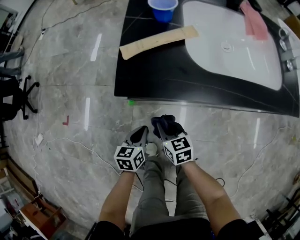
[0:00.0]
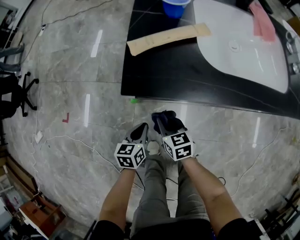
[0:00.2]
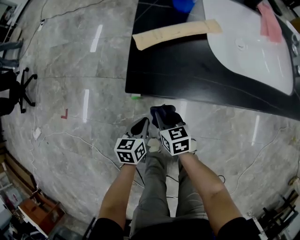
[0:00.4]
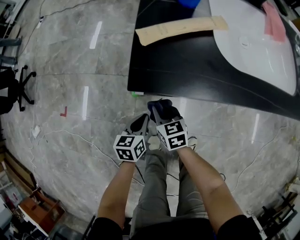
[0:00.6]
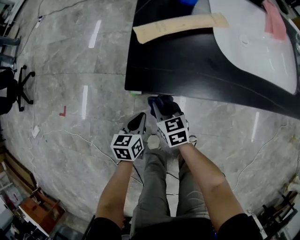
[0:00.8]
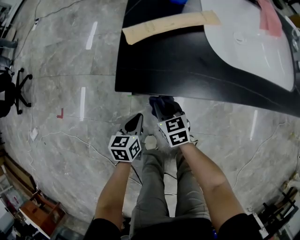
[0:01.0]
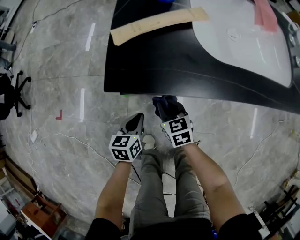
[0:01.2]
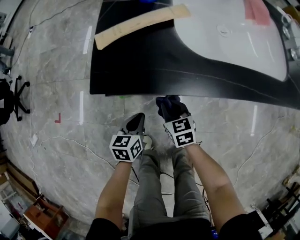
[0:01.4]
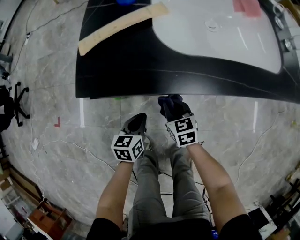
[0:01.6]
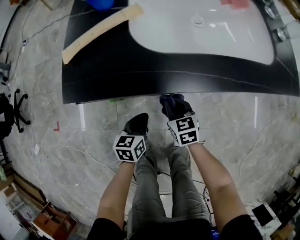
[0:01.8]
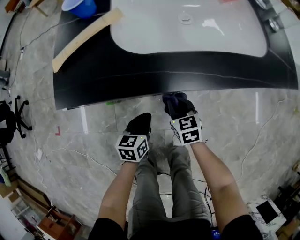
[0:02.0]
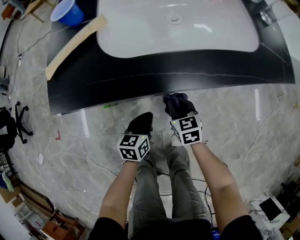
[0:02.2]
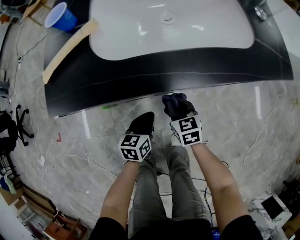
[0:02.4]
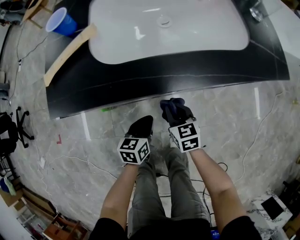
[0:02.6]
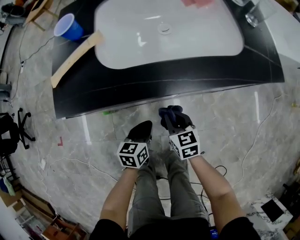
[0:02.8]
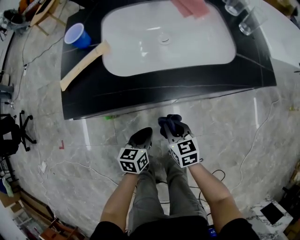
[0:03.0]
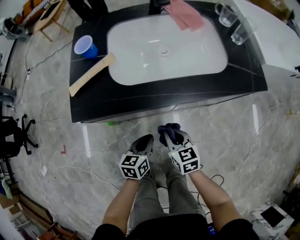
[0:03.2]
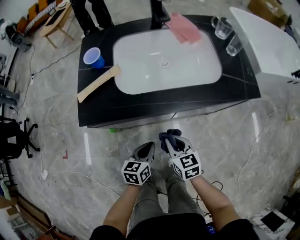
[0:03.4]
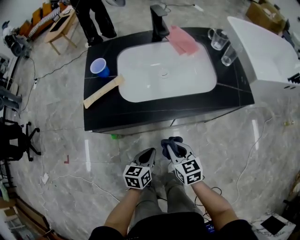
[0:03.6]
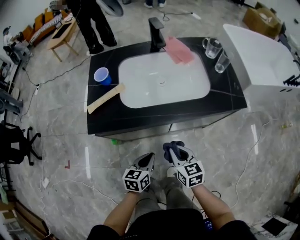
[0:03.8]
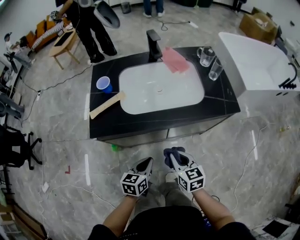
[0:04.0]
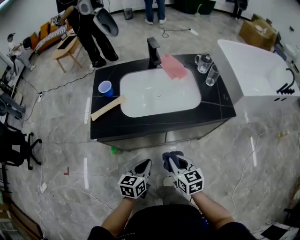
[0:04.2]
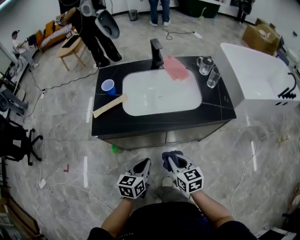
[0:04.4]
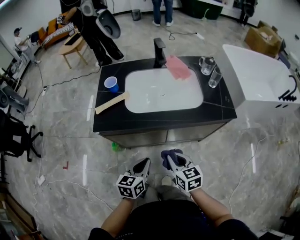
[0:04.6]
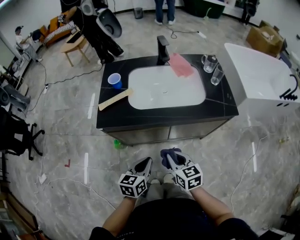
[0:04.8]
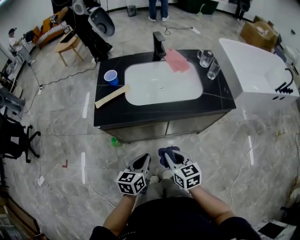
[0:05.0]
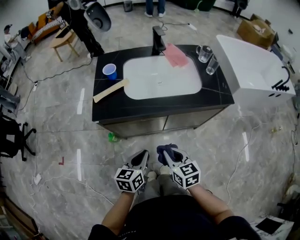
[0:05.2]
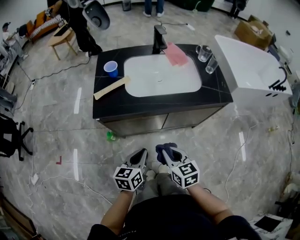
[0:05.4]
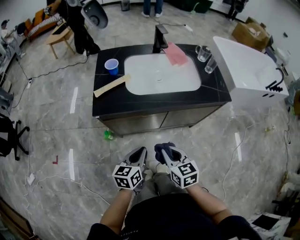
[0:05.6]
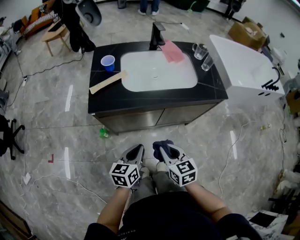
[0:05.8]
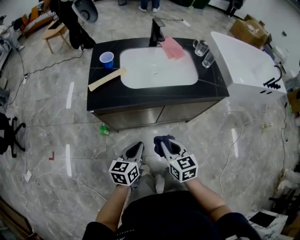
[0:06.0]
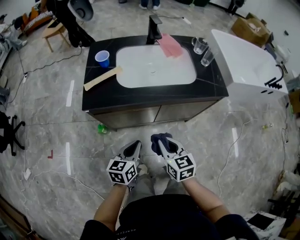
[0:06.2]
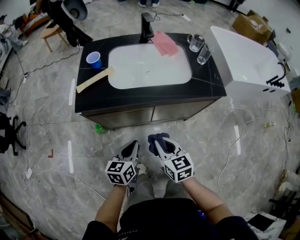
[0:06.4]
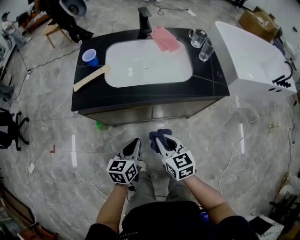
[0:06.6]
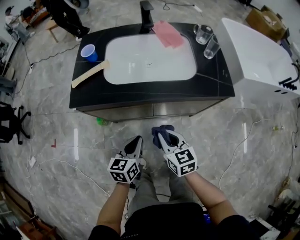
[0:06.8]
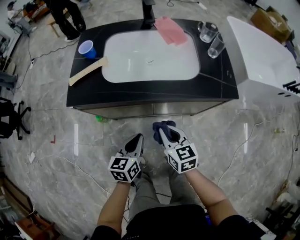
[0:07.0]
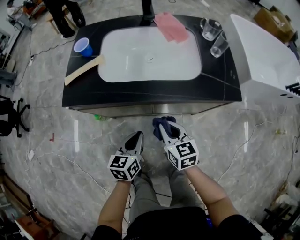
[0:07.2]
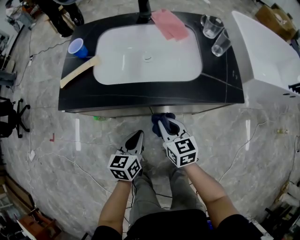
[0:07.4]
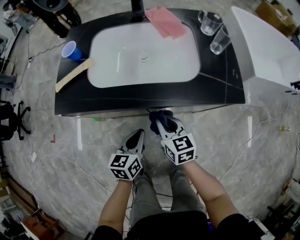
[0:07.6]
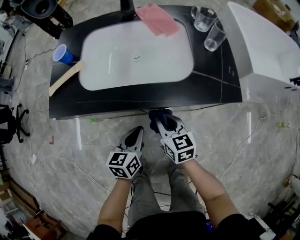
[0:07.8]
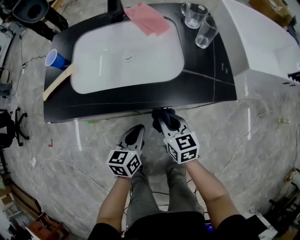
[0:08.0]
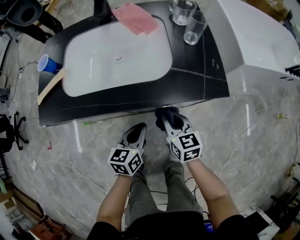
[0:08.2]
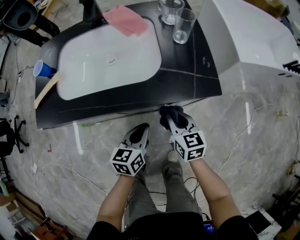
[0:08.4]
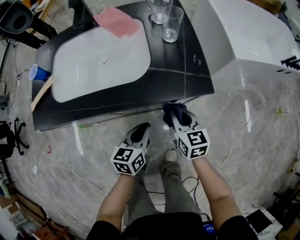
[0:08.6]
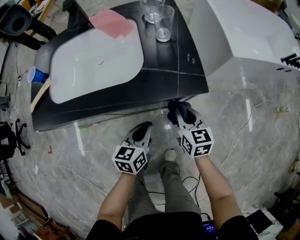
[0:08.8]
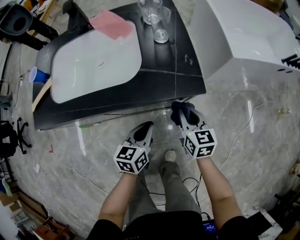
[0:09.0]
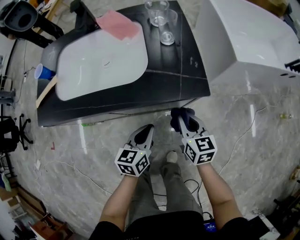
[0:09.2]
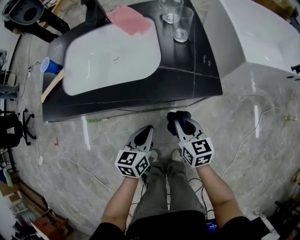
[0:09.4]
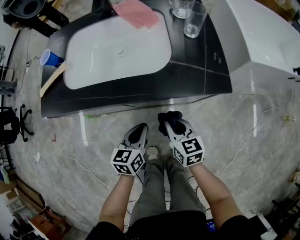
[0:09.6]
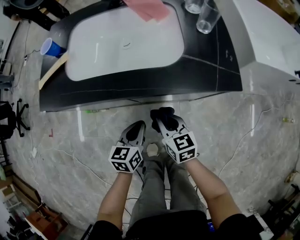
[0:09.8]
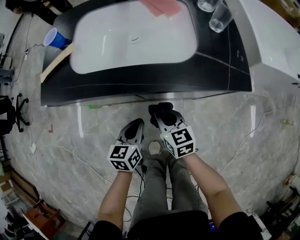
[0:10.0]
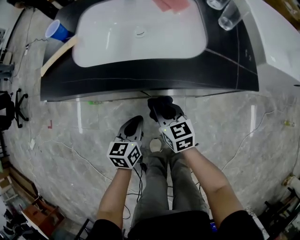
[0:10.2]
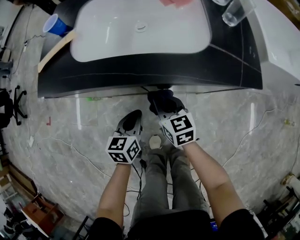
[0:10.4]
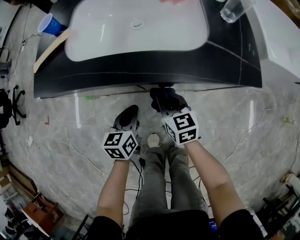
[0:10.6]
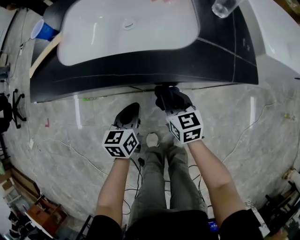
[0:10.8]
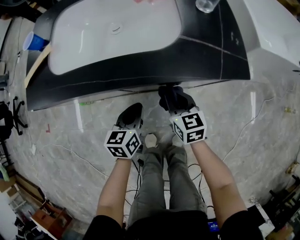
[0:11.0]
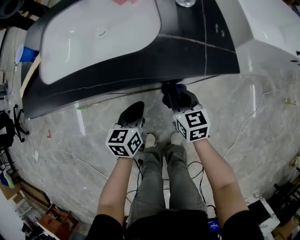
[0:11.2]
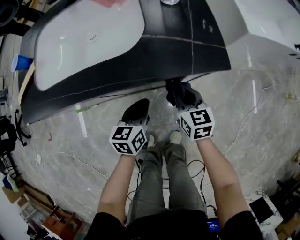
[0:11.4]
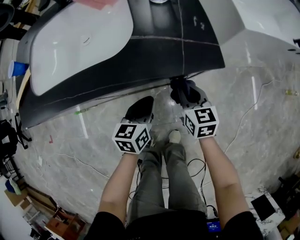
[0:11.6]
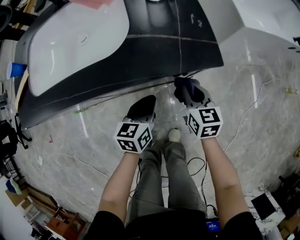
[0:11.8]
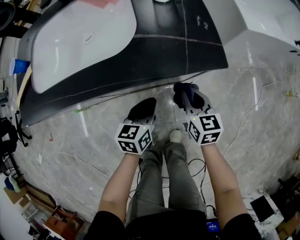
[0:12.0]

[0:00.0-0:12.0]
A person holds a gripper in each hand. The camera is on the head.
0.0 to 1.6 s: The right gripper moves to the right and downward, some 10 cm, while the left gripper goes about 5 cm to the right.
1.6 to 3.0 s: The right gripper is displaced to the right and upward by about 15 cm, while the left gripper moves to the right, some 15 cm.
3.0 to 4.4 s: Both grippers travel together upward, approximately 20 cm.
4.4 to 6.0 s: The left gripper ends up some 5 cm from where it was; the right gripper travels to the left and backward by about 10 cm.
6.0 to 7.6 s: The right gripper goes some 20 cm forward, to the right and downward, while the left gripper goes some 20 cm to the right, forward and downward.
7.6 to 9.0 s: The two grippers go about 25 cm to the right.
9.0 to 10.4 s: The two grippers go some 25 cm to the left. The right gripper swivels roughly 20 degrees.
10.4 to 12.0 s: Both grippers move to the right, roughly 25 cm. The right gripper rotates some 20 degrees.

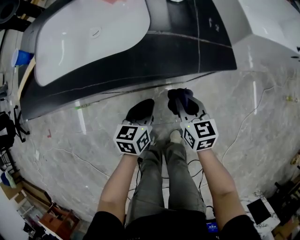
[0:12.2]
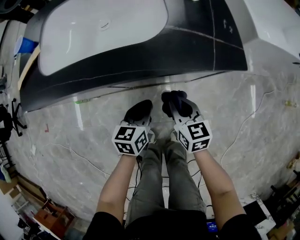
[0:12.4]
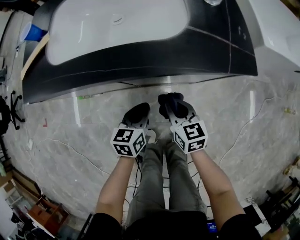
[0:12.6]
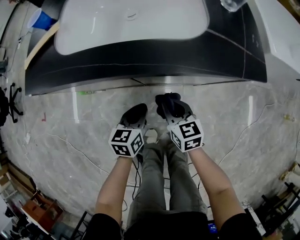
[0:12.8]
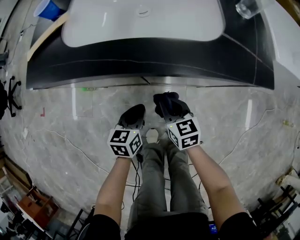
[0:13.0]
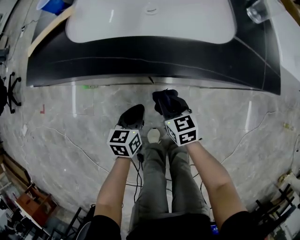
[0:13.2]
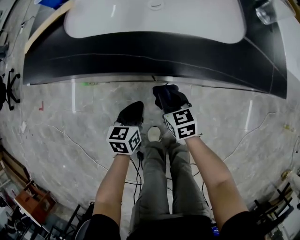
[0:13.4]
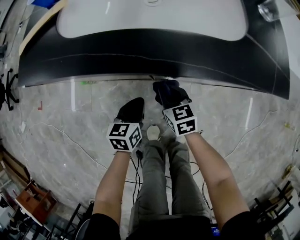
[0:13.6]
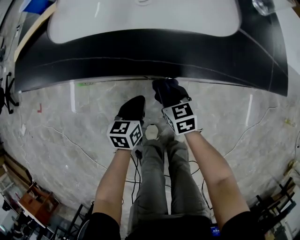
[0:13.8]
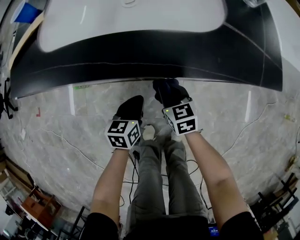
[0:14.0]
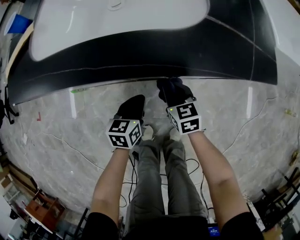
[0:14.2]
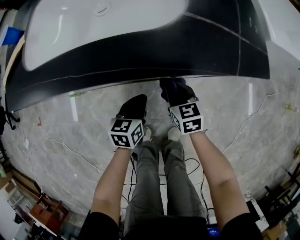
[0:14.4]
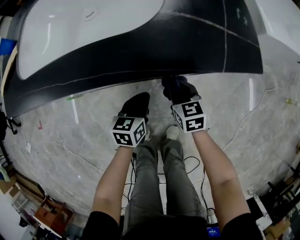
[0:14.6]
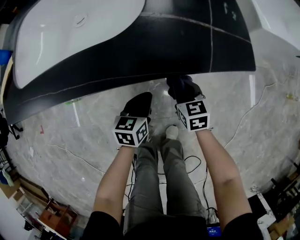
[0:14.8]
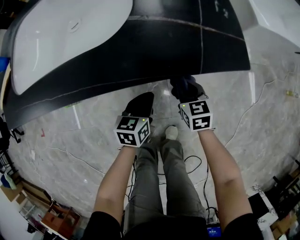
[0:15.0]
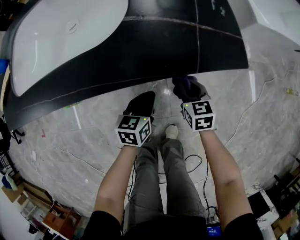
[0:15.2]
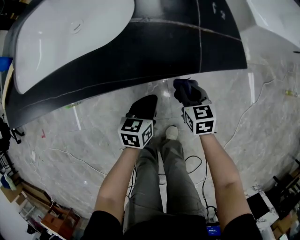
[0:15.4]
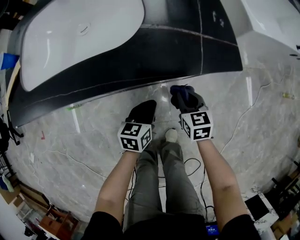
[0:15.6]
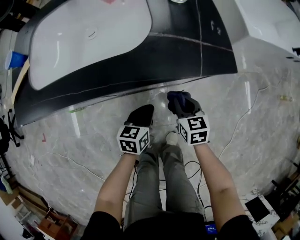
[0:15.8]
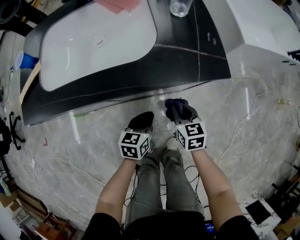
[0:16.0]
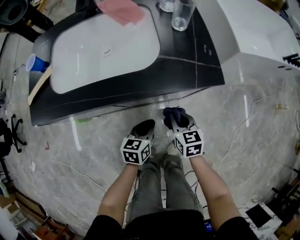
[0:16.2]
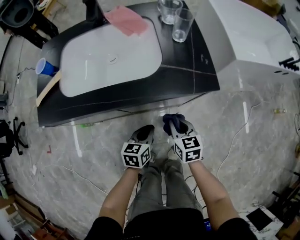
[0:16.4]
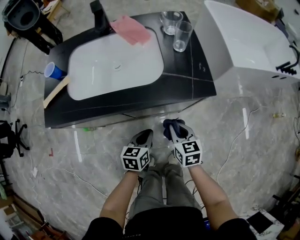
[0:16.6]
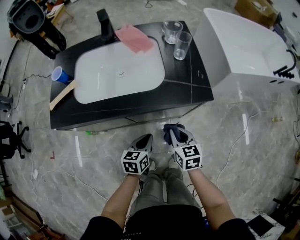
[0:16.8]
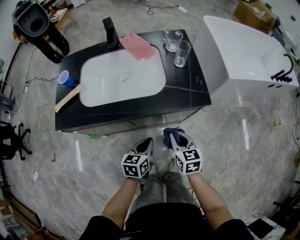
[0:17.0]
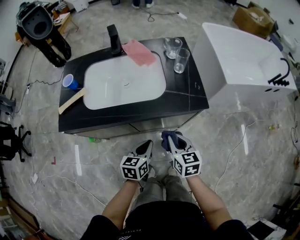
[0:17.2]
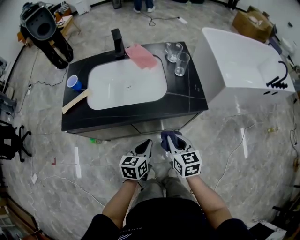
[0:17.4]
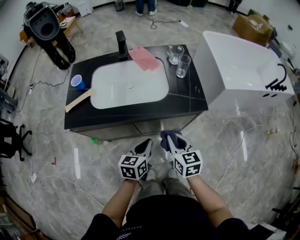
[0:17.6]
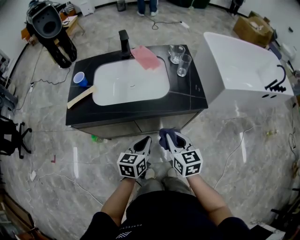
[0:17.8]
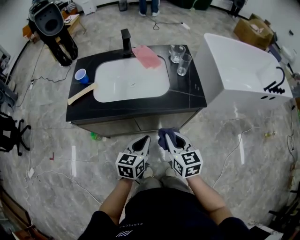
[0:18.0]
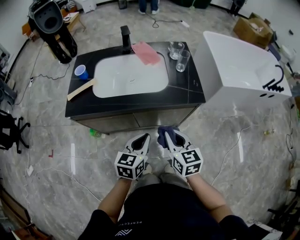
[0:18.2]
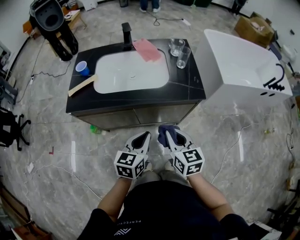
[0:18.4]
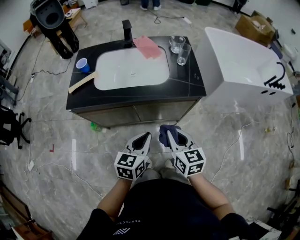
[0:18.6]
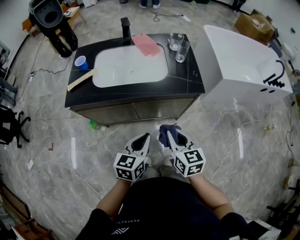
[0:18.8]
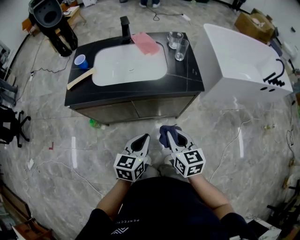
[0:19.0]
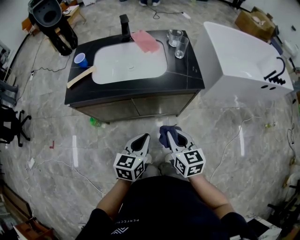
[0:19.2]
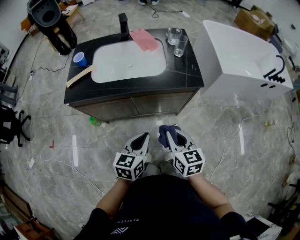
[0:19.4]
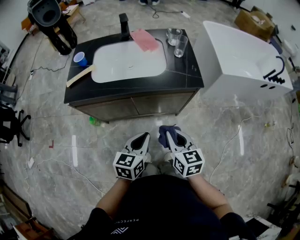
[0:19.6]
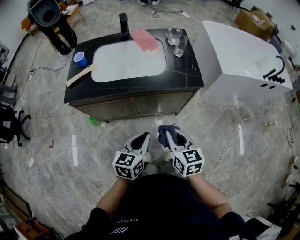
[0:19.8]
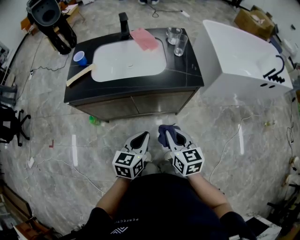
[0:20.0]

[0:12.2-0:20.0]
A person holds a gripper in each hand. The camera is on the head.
12.2 to 13.8 s: The two grippers go approximately 20 cm to the left and downward. The right gripper turns by approximately 20 degrees.
13.8 to 15.4 s: The grippers both shift to the right by about 25 cm. The right gripper swivels some 20 degrees.
15.4 to 16.8 s: Both grippers travel together upward and to the left, approximately 20 cm.
16.8 to 18.4 s: Both grippers move upward and backward, some 20 cm.
18.4 to 20.0 s: The two grippers go about 5 cm backward.

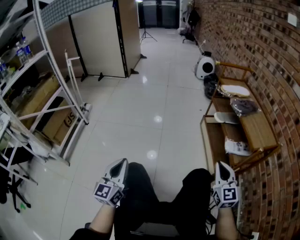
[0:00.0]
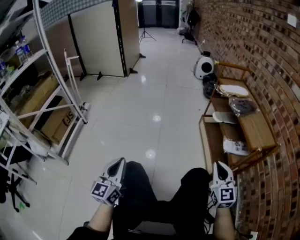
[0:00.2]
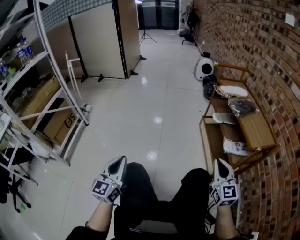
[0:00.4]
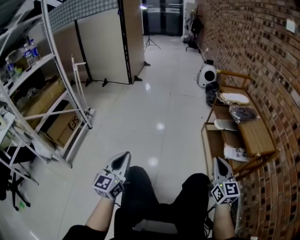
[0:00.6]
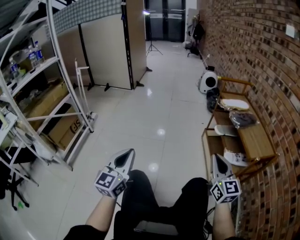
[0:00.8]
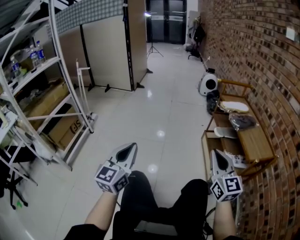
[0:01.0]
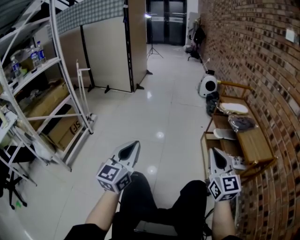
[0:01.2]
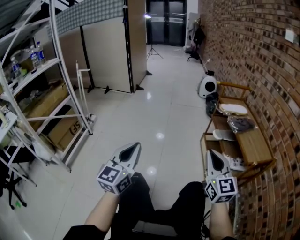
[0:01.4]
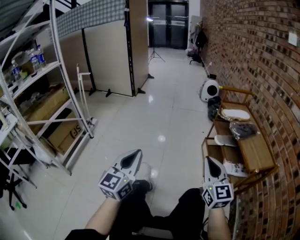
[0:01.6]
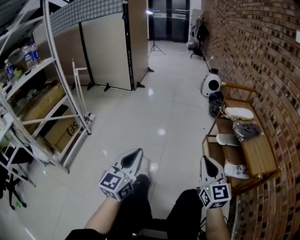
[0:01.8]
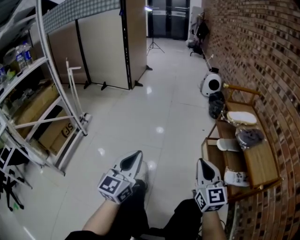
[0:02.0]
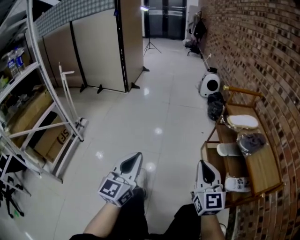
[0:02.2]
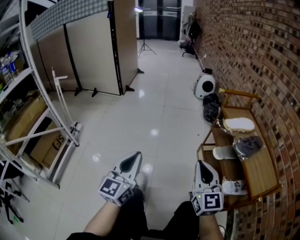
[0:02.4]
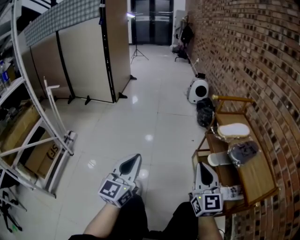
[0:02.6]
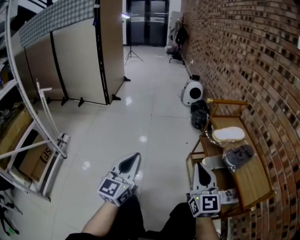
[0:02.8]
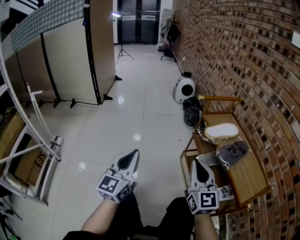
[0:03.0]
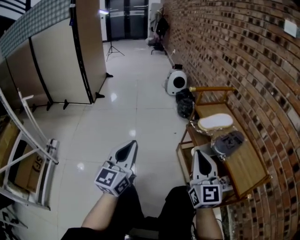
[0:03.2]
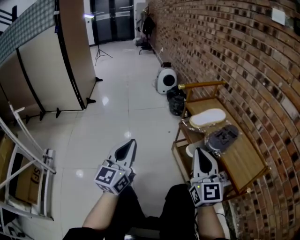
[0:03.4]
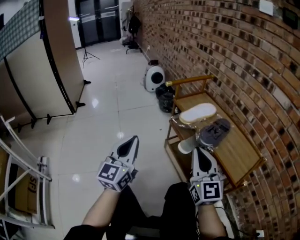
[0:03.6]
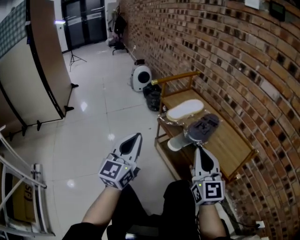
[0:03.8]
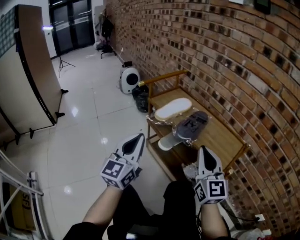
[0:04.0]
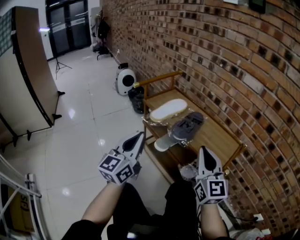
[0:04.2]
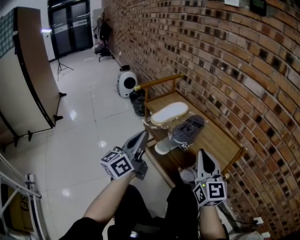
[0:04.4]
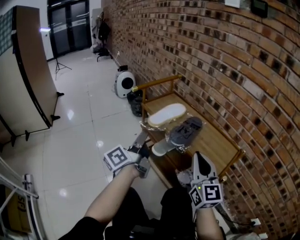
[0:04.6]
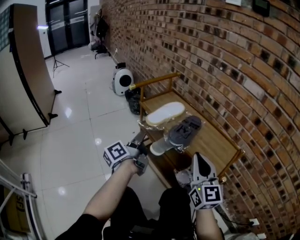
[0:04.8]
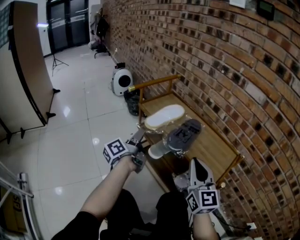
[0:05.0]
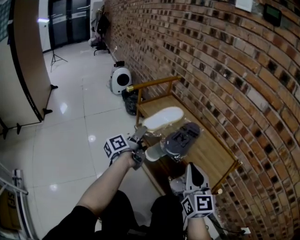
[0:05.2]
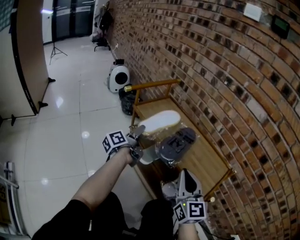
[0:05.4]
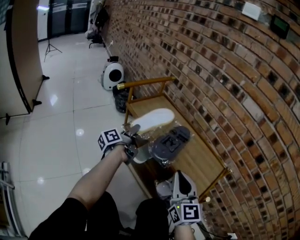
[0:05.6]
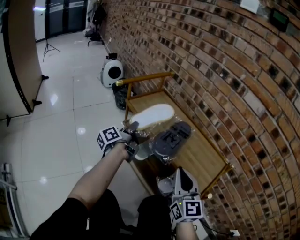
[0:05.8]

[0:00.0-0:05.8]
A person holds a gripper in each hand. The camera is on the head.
0.0 to 1.4 s: The left gripper moves upward, approximately 15 cm, while the right gripper is displaced upward and to the left by about 15 cm.
1.4 to 2.8 s: Both grippers move forward, approximately 25 cm.
2.8 to 4.4 s: The left gripper ends up some 30 cm from where it was, and turns by some 50 degrees. The right gripper ends up approximately 20 cm from where it was, and swivels roughly 30 degrees.
4.4 to 5.8 s: The left gripper shifts about 25 cm forward and downward, twists approximately 50 degrees counterclockwise, seen from behind, and opens, then closes again; the right gripper moves downward, some 5 cm.
